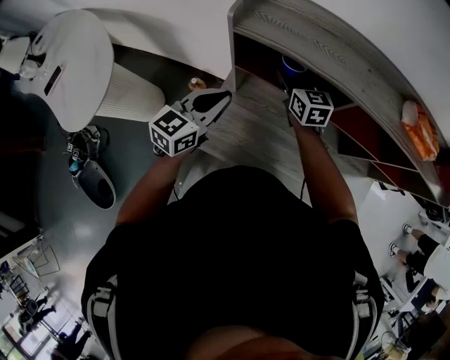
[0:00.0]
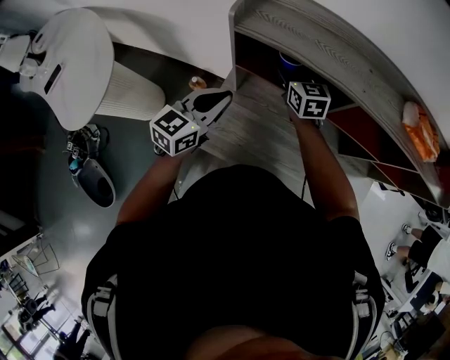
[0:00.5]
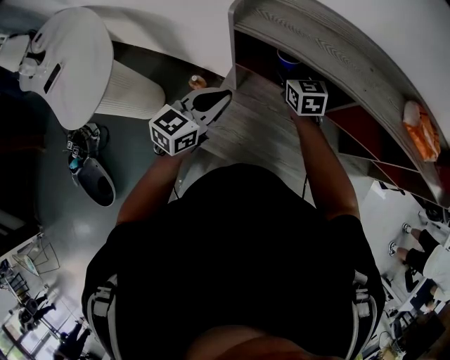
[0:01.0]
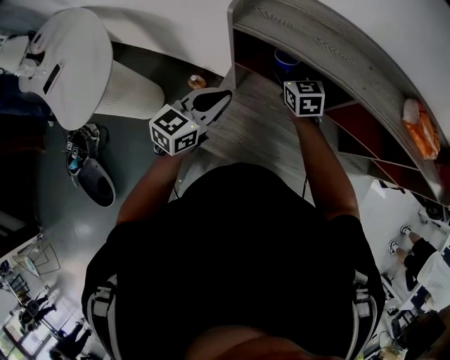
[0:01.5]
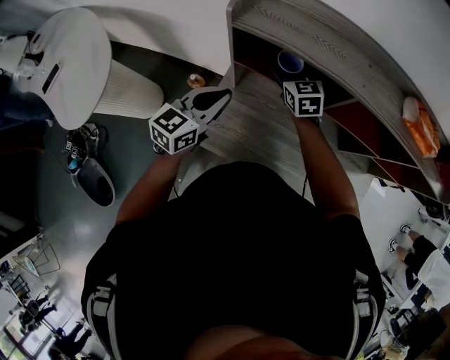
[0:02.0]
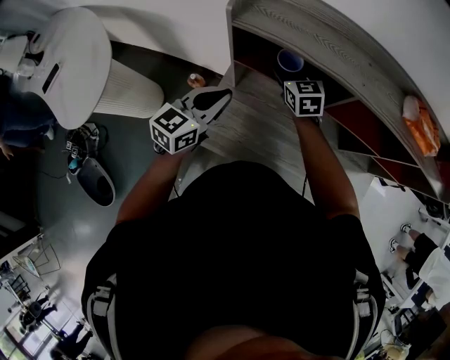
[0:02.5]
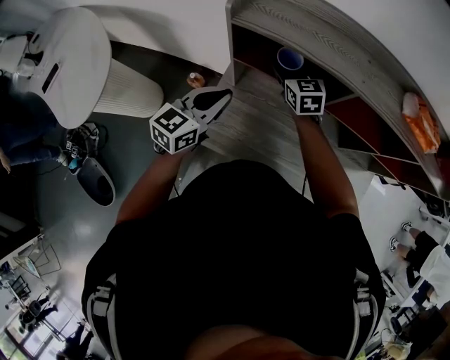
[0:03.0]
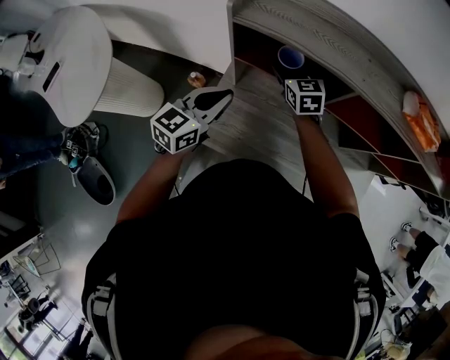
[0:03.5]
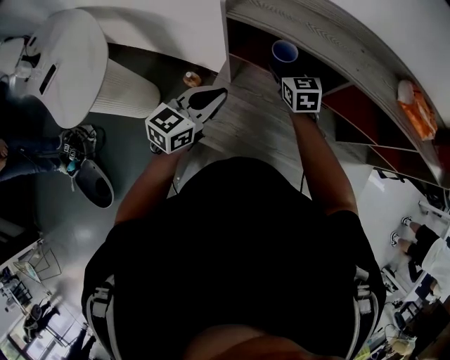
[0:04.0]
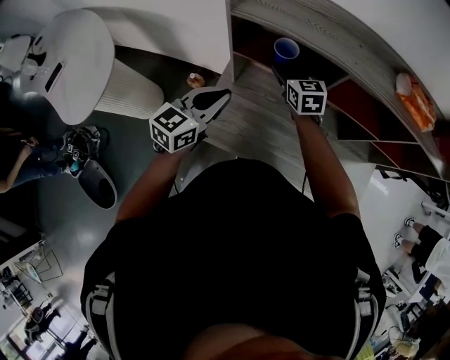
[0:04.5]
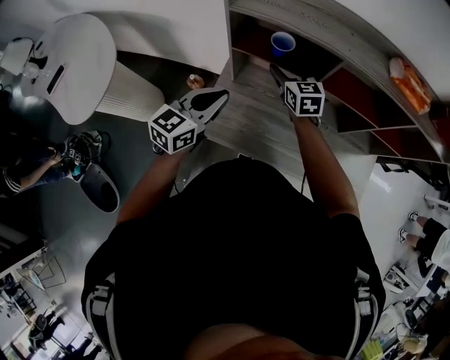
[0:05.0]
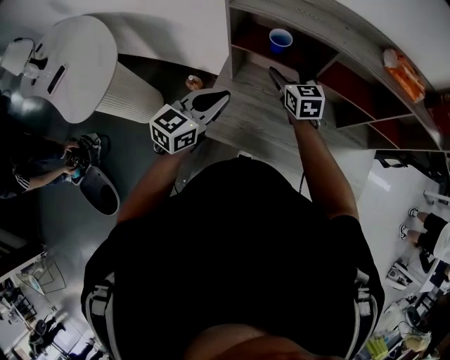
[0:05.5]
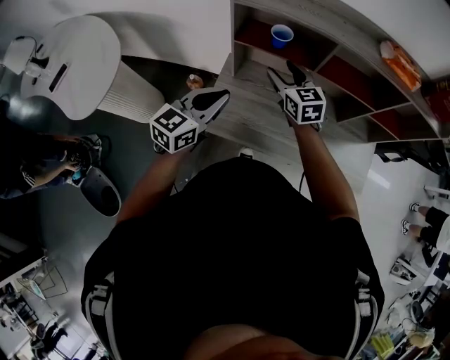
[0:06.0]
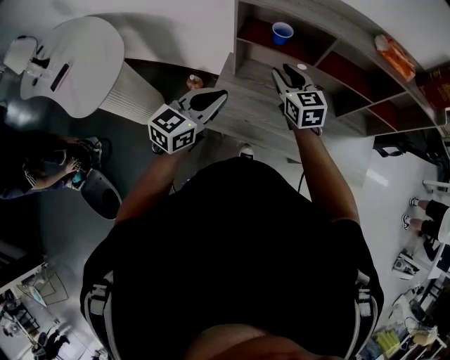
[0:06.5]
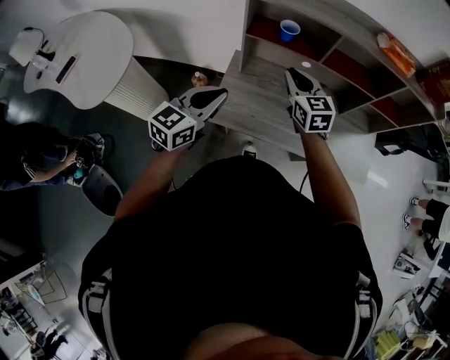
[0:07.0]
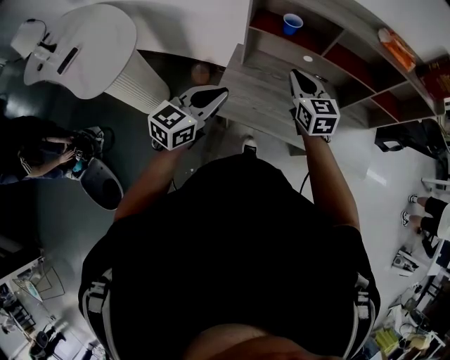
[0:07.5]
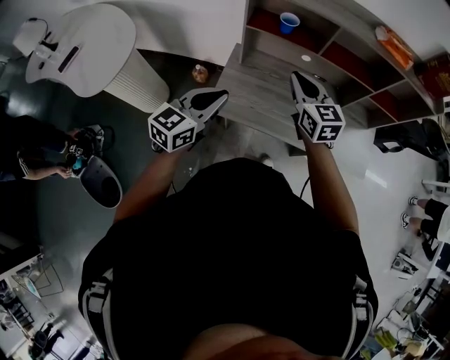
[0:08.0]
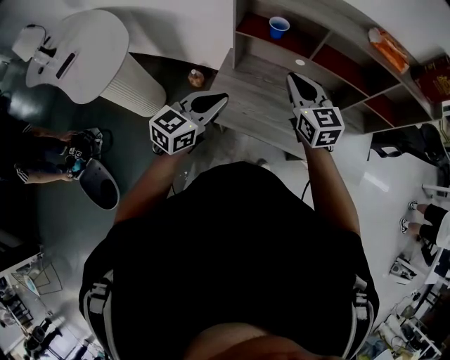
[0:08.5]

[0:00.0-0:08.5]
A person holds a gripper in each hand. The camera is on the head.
0:00.0 to 0:04.0: The grippers move only a little.
0:04.0 to 0:06.5: The two grippers go about 15 cm backward. The right gripper closes its fingers.
0:06.5 to 0:08.5: The left gripper moves roughly 5 cm. The right gripper shifts roughly 10 cm backward, upward and to the right.

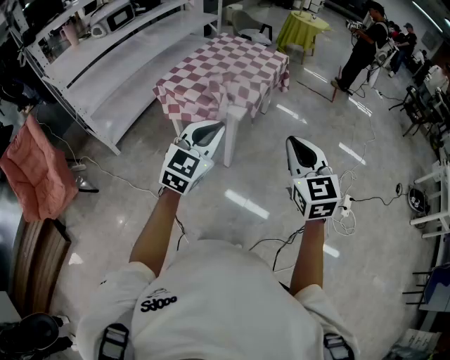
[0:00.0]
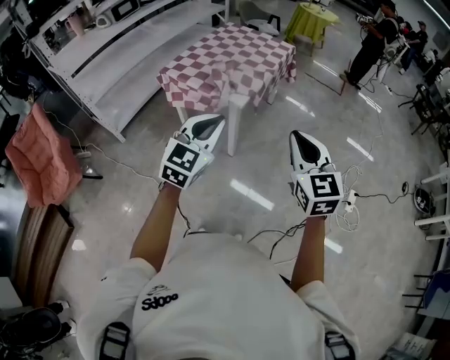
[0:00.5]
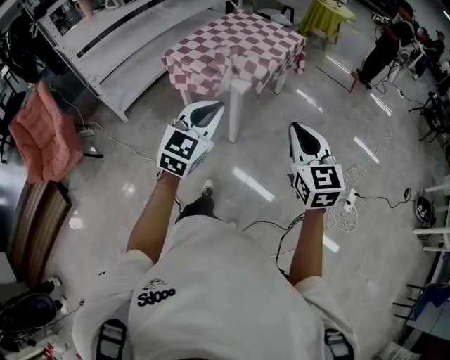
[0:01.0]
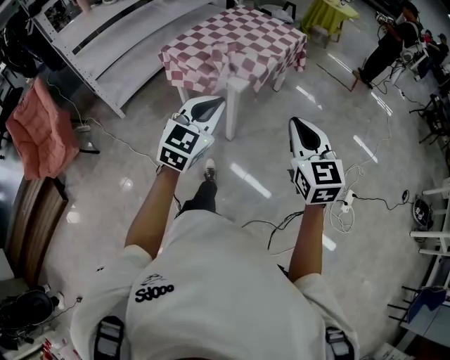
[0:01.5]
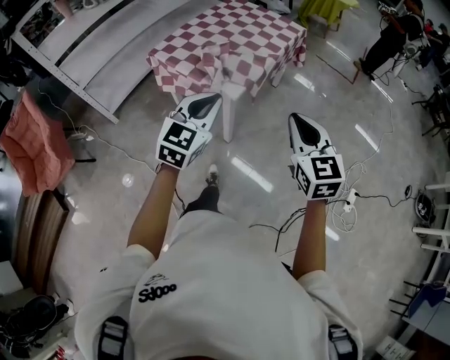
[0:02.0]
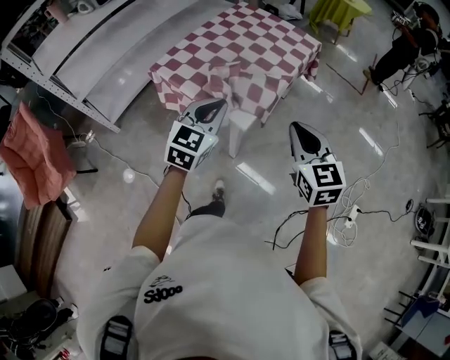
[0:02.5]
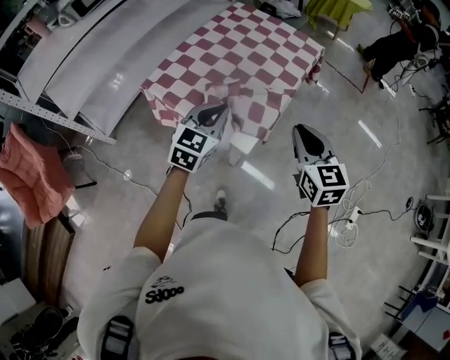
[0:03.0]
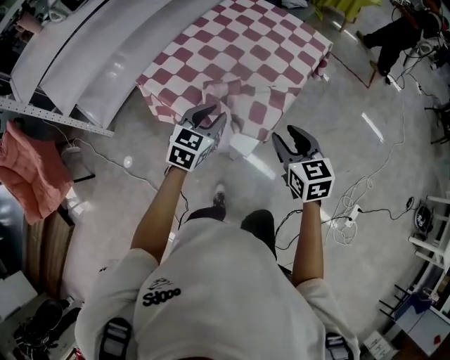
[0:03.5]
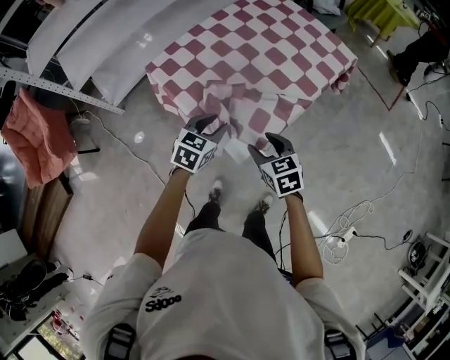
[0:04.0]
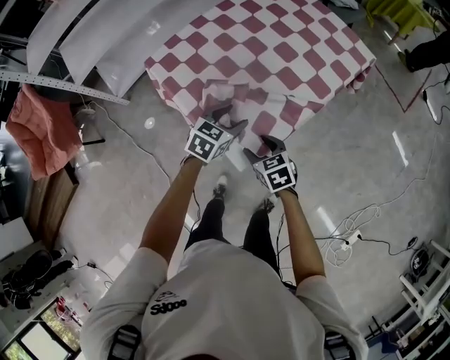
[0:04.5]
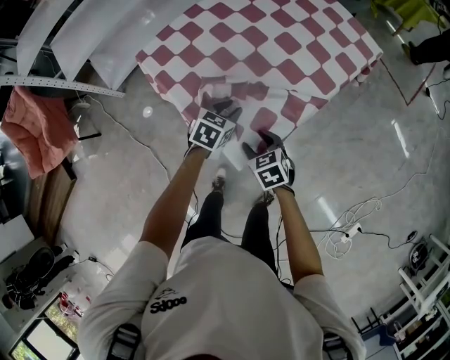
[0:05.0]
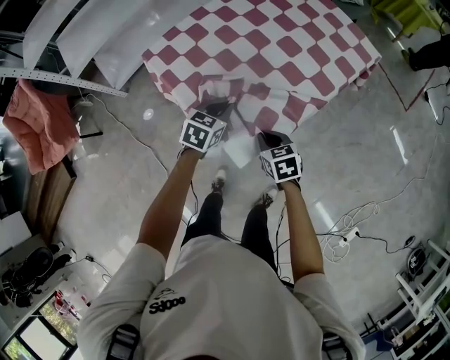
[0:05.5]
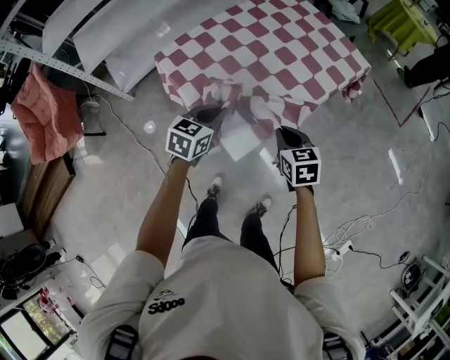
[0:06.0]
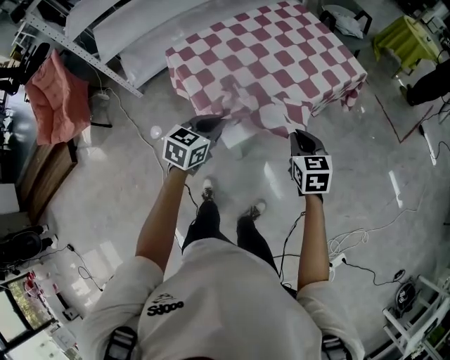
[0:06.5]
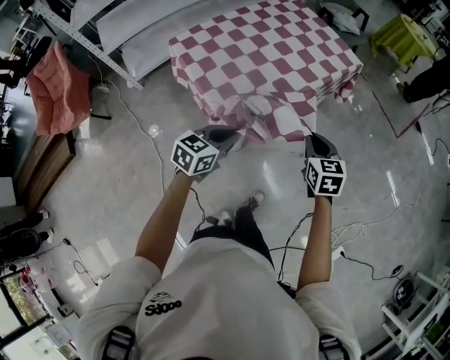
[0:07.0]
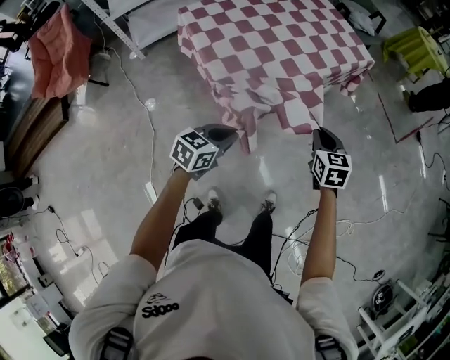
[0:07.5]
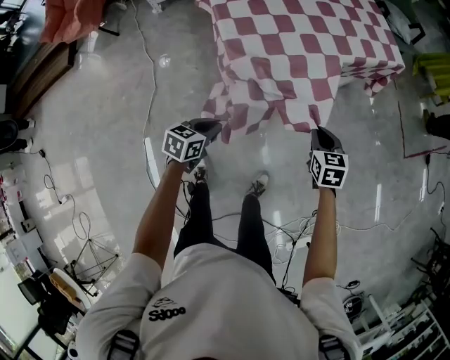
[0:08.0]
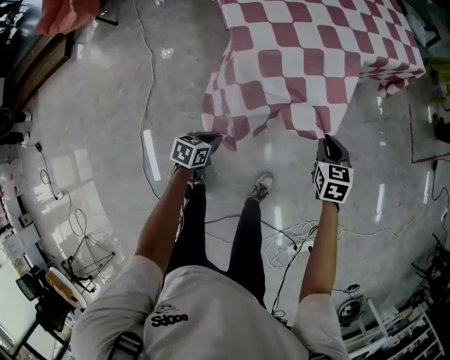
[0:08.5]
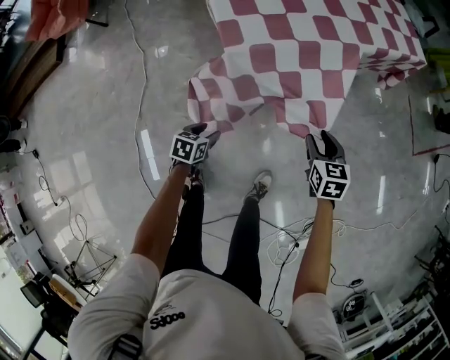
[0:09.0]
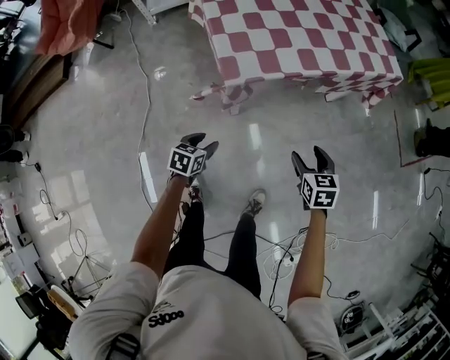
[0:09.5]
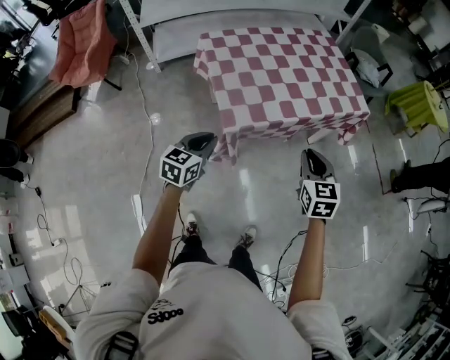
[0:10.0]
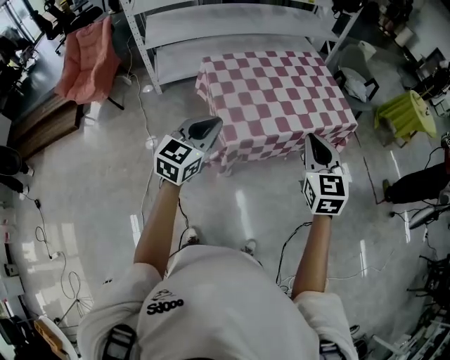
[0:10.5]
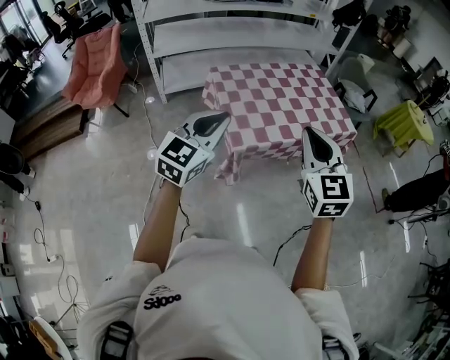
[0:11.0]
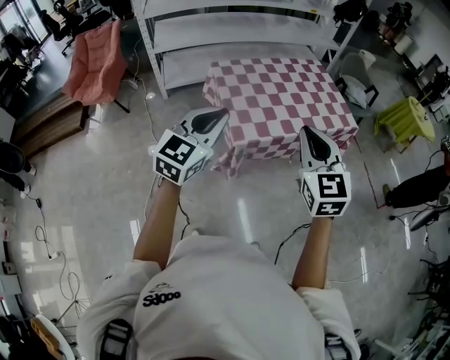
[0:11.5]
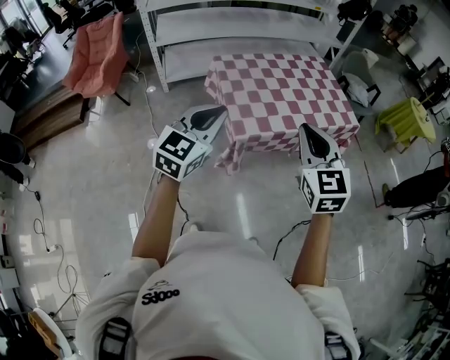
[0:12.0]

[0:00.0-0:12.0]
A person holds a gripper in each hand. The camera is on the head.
0:00.0 to 0:02.0: The right gripper travels forward, downward and to the right by roughly 20 cm, while the left gripper shifts about 15 cm forward and downward.
0:02.0 to 0:04.0: The two grippers go some 40 cm forward and downward. The right gripper rotates roughly 40 degrees, and opens its fingers. Meanwhile the left gripper swivels some 30 degrees, and opens up.
0:04.0 to 0:06.0: The right gripper goes some 5 cm to the right, travels downward and back again, some 15 cm each way, and closes, while the left gripper moves some 10 cm downward and comes back, and closes.
0:06.0 to 0:08.0: The left gripper travels backward, downward and to the right by some 40 cm, and turns by about 30 degrees. Meanwhile the right gripper travels to the right, backward and downward by roughly 25 cm.
0:08.0 to 0:10.0: The left gripper heads upward and forward, covering some 20 cm, rotates some 20 degrees, and opens, then closes once more, while the right gripper goes some 20 cm upward, and opens and closes again.
0:10.0 to 0:12.0: The left gripper travels upward by approximately 25 cm, and swivels approximately 30 degrees. The right gripper heads upward and to the left, covering approximately 25 cm, and swivels some 20 degrees.

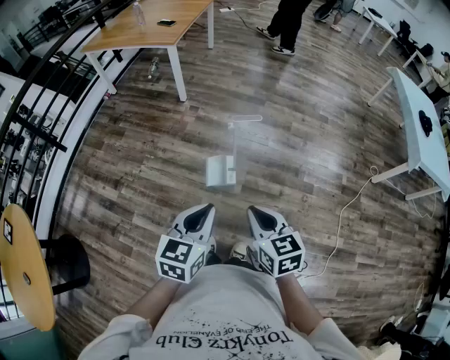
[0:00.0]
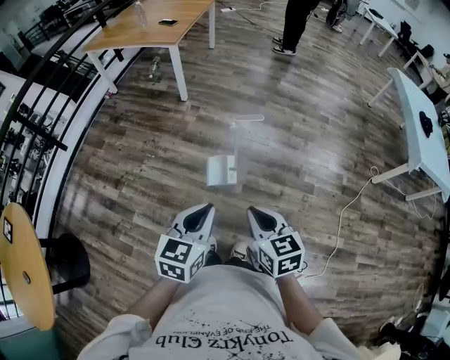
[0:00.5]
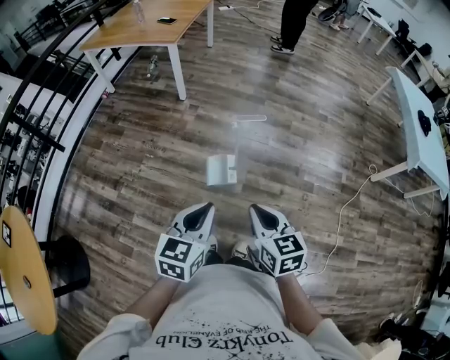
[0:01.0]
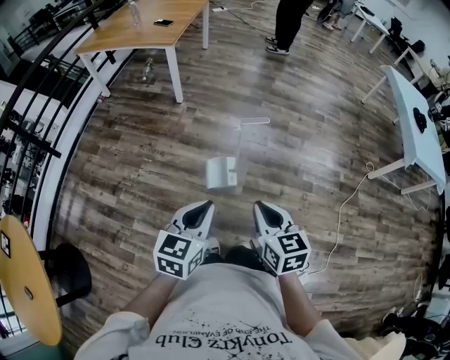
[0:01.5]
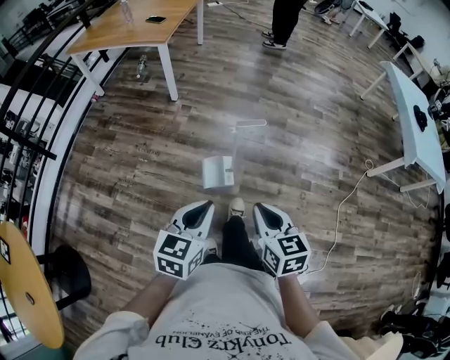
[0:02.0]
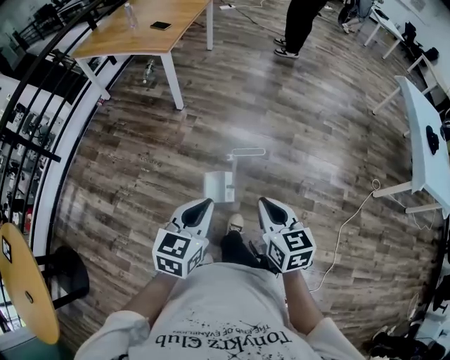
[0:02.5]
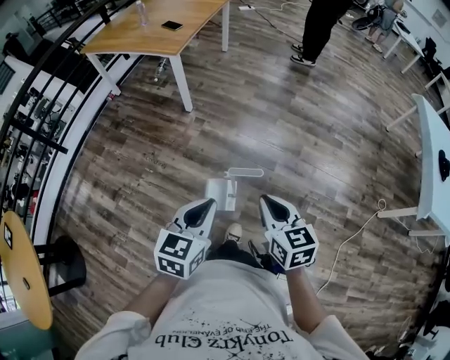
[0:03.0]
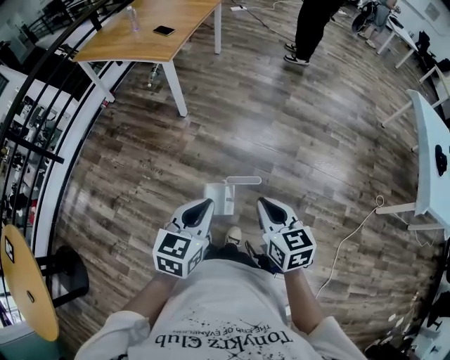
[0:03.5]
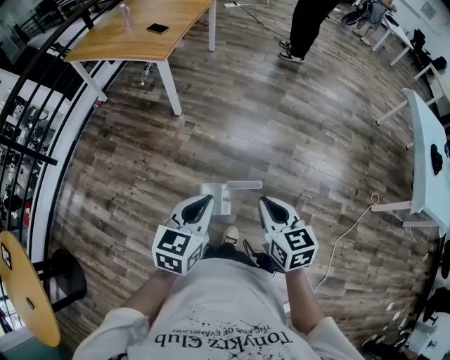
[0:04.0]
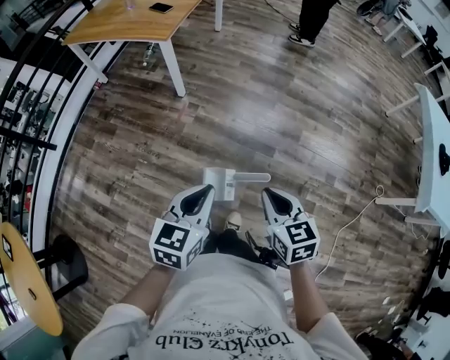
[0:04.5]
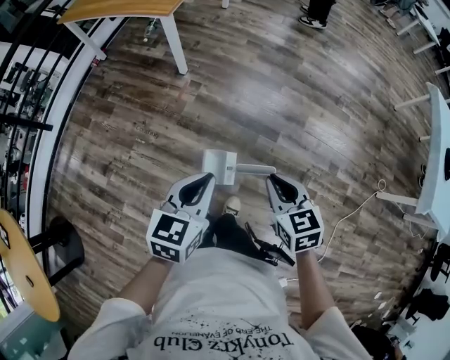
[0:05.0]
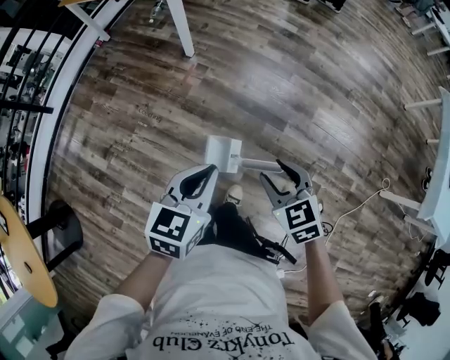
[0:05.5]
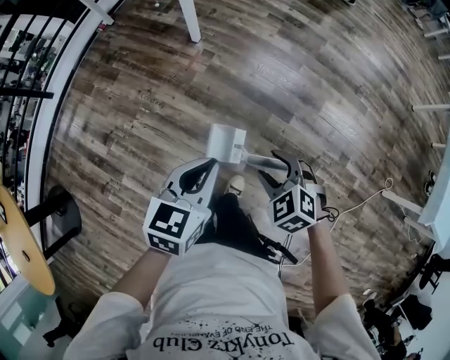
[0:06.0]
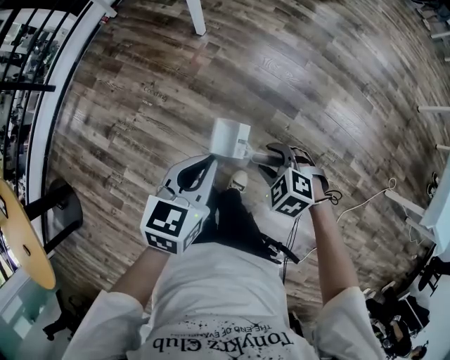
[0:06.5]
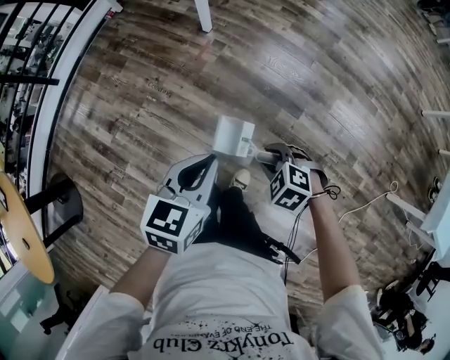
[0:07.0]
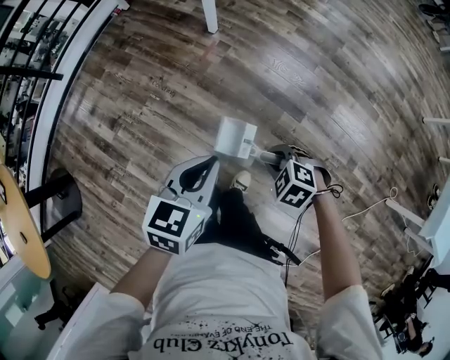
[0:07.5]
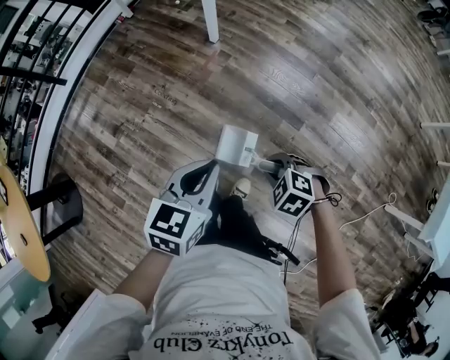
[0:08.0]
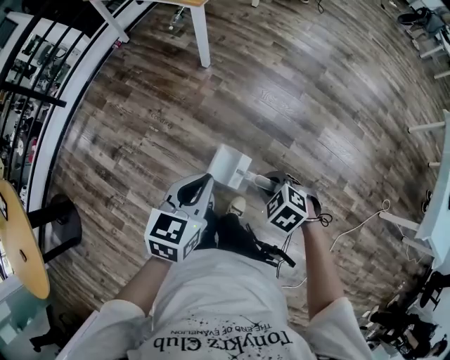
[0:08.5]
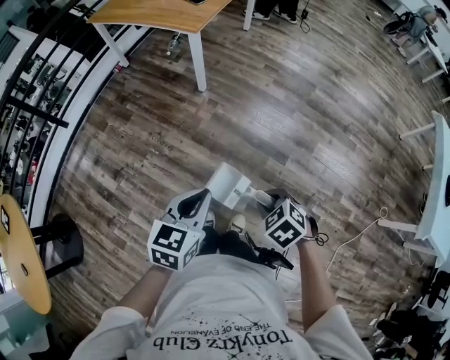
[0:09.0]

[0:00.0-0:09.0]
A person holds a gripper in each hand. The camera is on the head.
0:00.0 to 0:02.0: Both grippers travel together forward, approximately 5 cm.
0:02.0 to 0:04.5: Both grippers travel together forward, roughly 30 cm.
0:04.5 to 0:07.0: The left gripper goes roughly 10 cm downward and forward. Meanwhile the right gripper shifts some 20 cm downward, angles its fingers downward, by some 30 degrees, and opens up.
0:07.0 to 0:09.0: The right gripper heads upward, covering approximately 15 cm, and changes its angle by about 20 degrees. The left gripper is displaced upward by some 5 cm.
